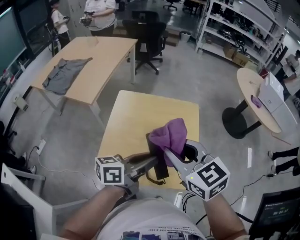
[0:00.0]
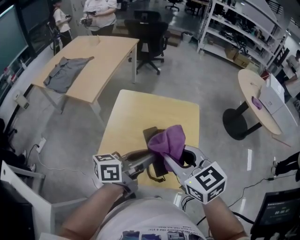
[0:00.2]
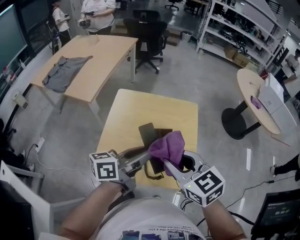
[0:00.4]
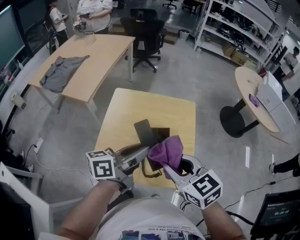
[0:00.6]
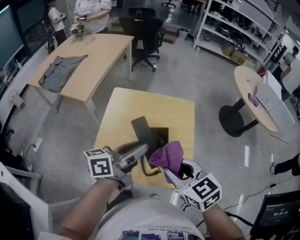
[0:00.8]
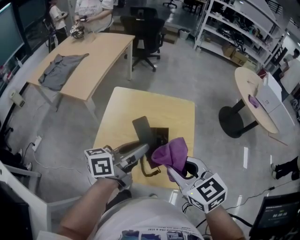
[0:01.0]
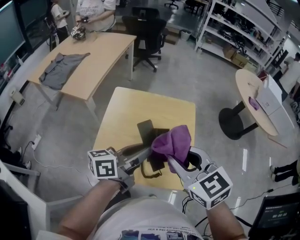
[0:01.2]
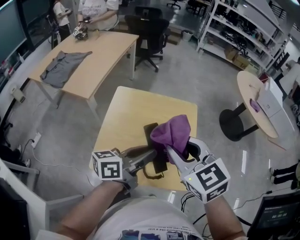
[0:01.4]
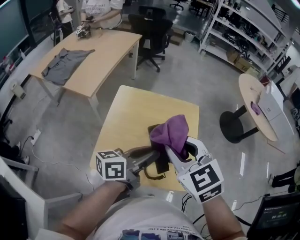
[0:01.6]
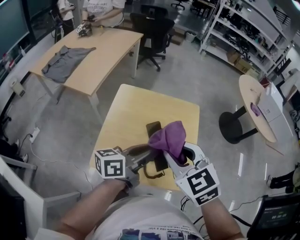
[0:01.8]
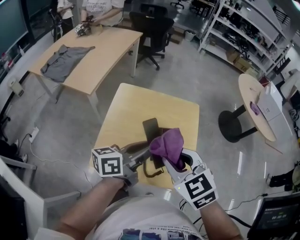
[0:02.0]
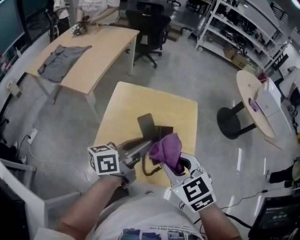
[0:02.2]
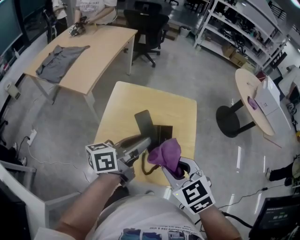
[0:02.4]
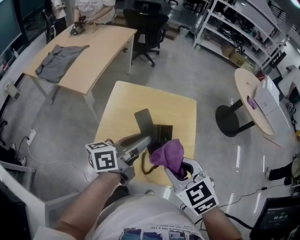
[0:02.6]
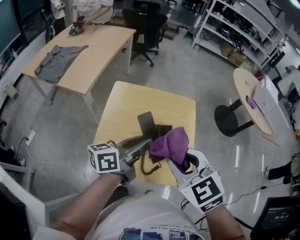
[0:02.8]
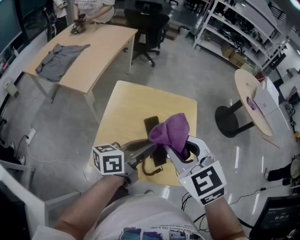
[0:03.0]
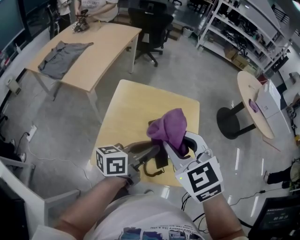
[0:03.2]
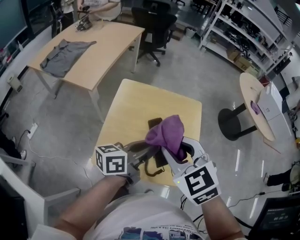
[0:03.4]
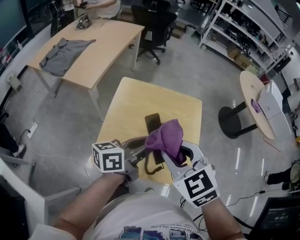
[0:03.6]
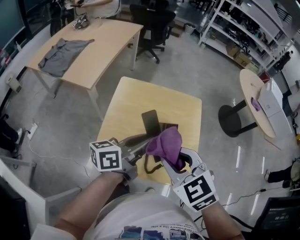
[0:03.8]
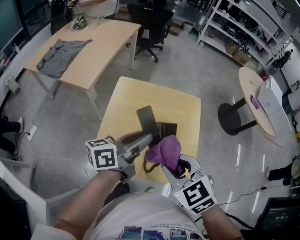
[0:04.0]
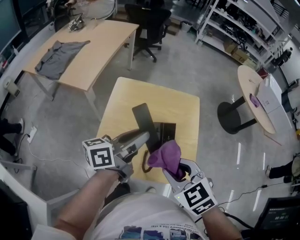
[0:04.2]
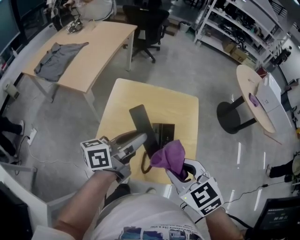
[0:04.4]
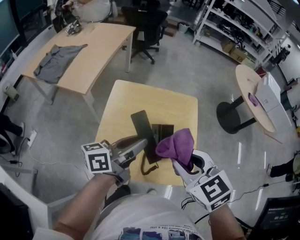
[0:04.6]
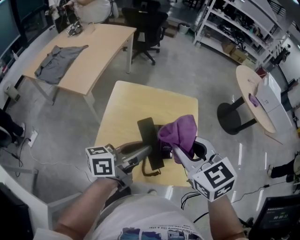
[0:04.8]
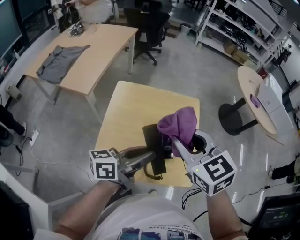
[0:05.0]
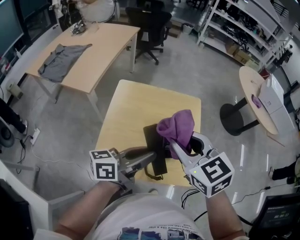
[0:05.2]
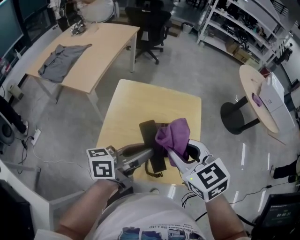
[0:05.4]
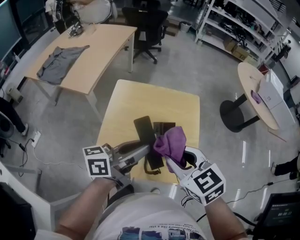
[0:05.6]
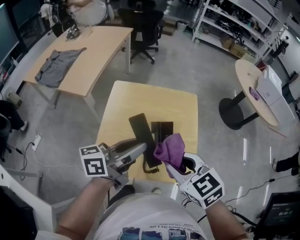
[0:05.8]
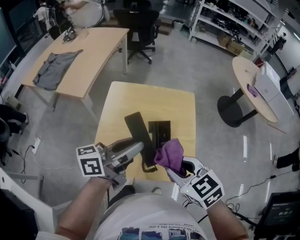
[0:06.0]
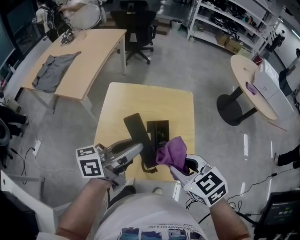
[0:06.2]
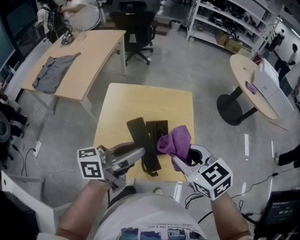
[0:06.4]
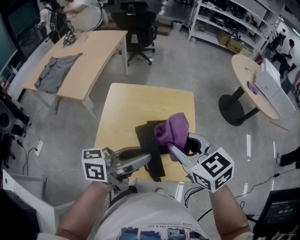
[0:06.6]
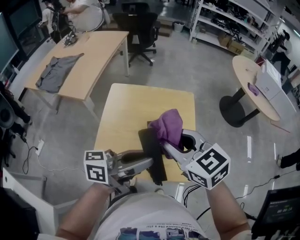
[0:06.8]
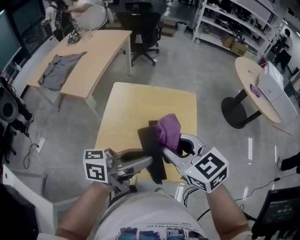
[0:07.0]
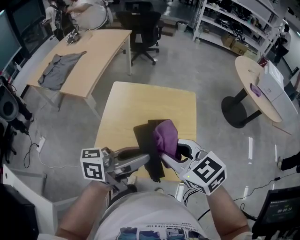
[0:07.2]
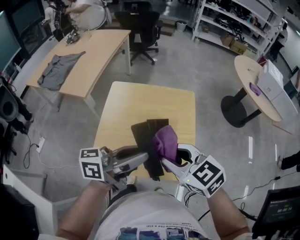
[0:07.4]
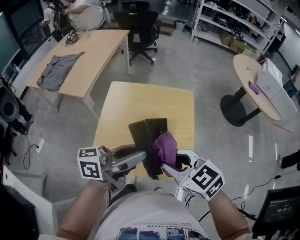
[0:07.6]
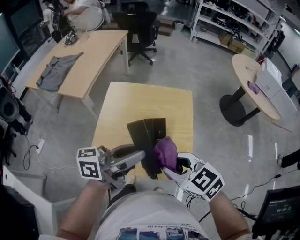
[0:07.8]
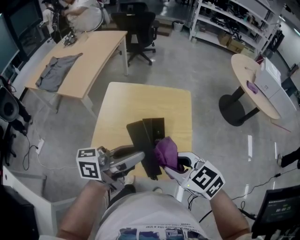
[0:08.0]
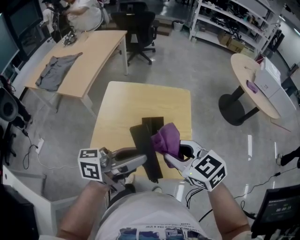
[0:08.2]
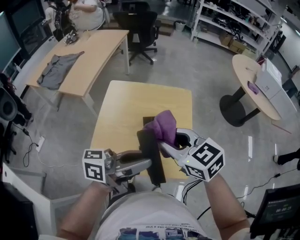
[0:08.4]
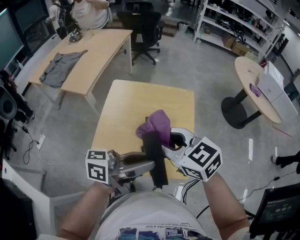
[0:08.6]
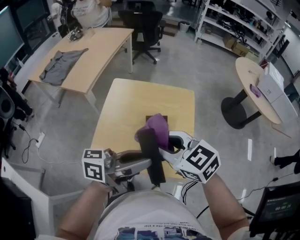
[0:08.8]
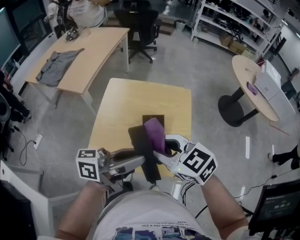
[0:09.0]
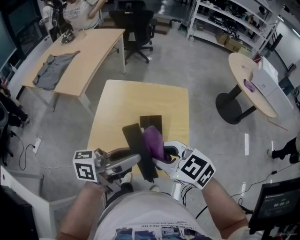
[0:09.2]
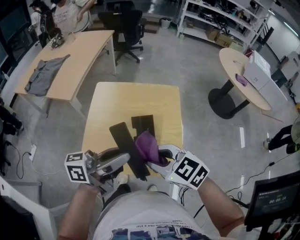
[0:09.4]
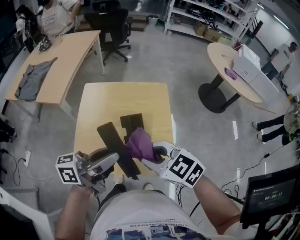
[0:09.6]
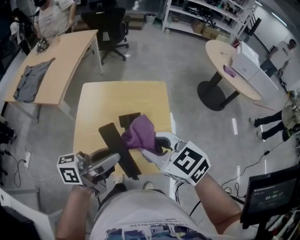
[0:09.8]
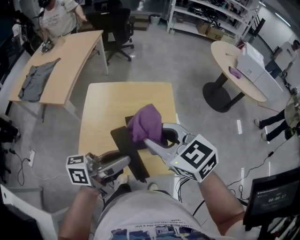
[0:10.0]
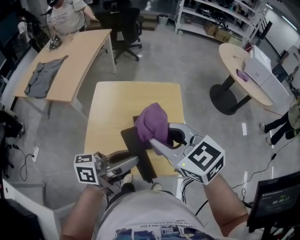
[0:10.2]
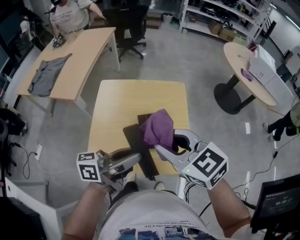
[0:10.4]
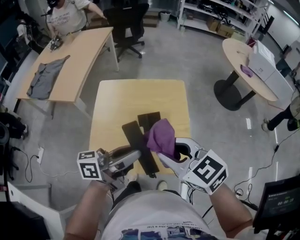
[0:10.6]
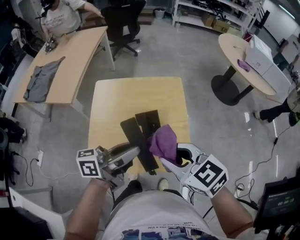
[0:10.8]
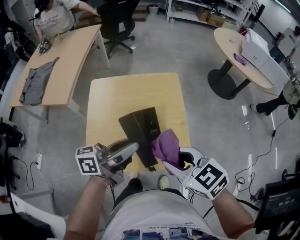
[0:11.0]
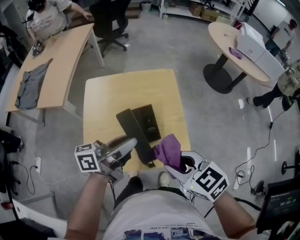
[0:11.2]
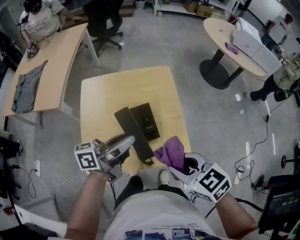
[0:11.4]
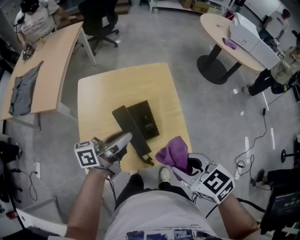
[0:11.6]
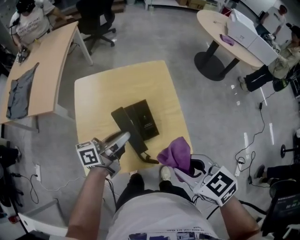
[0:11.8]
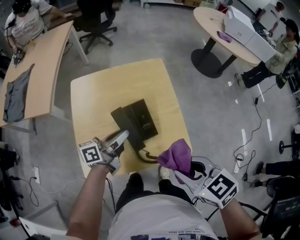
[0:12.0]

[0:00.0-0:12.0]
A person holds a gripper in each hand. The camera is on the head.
0:00.0 to 0:01.6: The right gripper moves roughly 5 cm downward and comes back.
0:01.6 to 0:03.0: The right gripper moves roughly 5 cm downward and comes back.
0:03.0 to 0:04.4: The left gripper shifts by roughly 5 cm, while the right gripper shifts about 10 cm downward and backward.
0:04.4 to 0:06.0: The right gripper moves approximately 5 cm upward and comes back.
0:06.0 to 0:07.6: The left gripper ends up about 5 cm from where it was.
0:09.0 to 0:10.4: The right gripper changes place by some 5 cm.
0:10.4 to 0:12.0: The right gripper travels backward, downward and to the right by some 15 cm, and changes its angle by approximately 30 degrees; the left gripper moves downward and forward, about 15 cm.

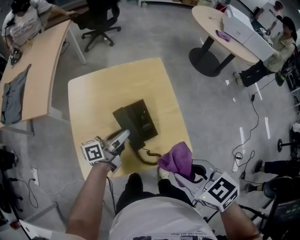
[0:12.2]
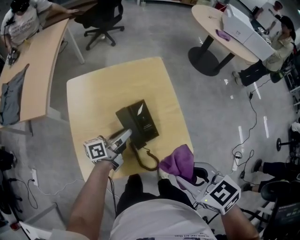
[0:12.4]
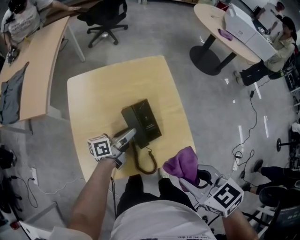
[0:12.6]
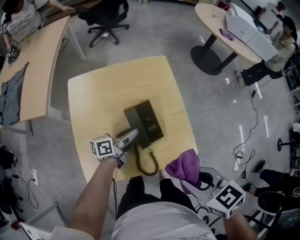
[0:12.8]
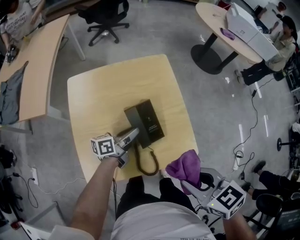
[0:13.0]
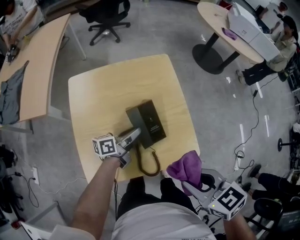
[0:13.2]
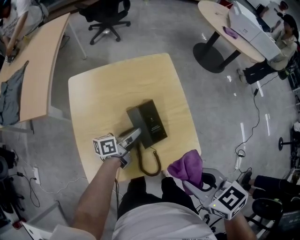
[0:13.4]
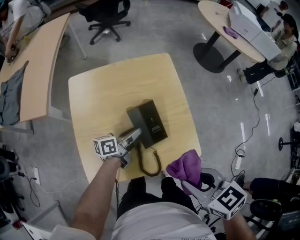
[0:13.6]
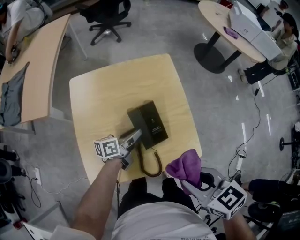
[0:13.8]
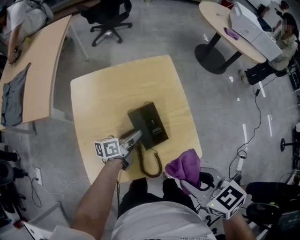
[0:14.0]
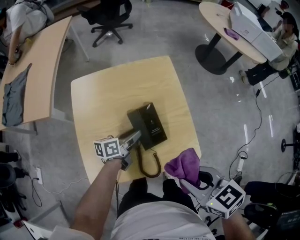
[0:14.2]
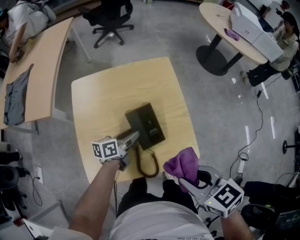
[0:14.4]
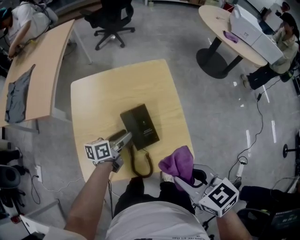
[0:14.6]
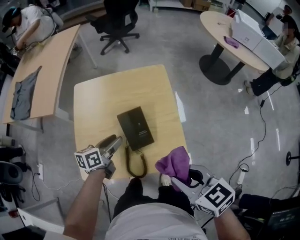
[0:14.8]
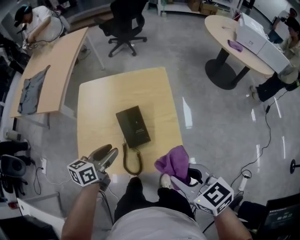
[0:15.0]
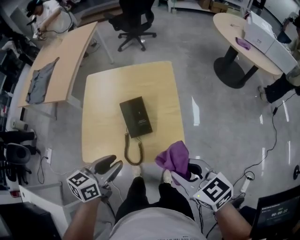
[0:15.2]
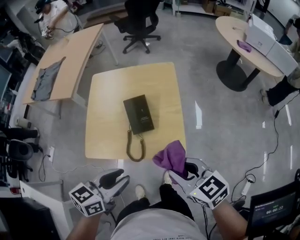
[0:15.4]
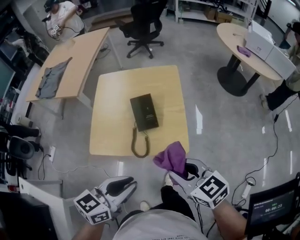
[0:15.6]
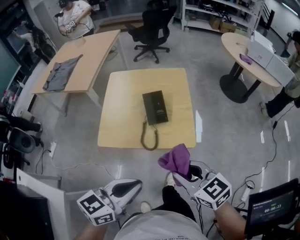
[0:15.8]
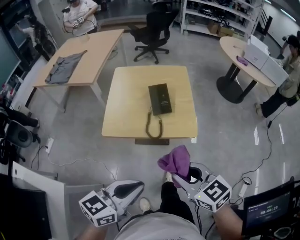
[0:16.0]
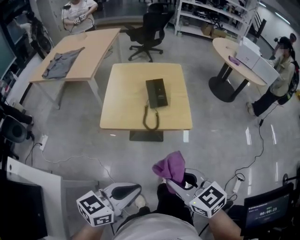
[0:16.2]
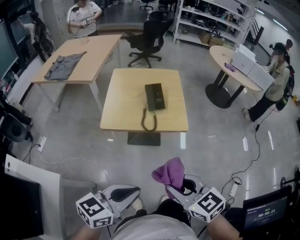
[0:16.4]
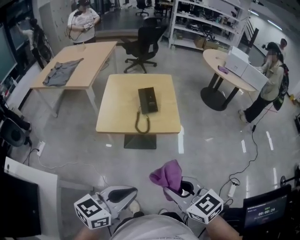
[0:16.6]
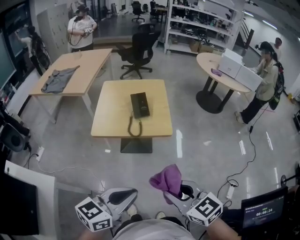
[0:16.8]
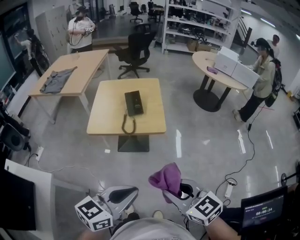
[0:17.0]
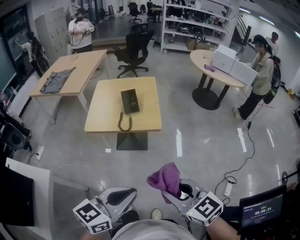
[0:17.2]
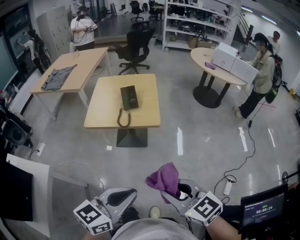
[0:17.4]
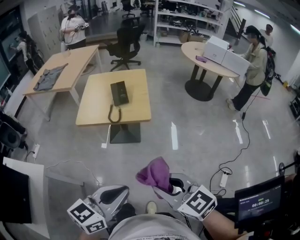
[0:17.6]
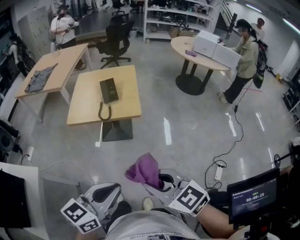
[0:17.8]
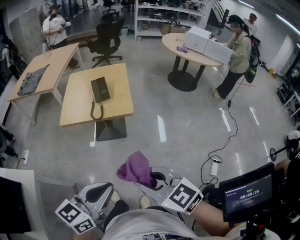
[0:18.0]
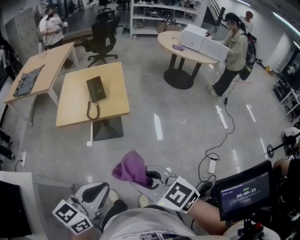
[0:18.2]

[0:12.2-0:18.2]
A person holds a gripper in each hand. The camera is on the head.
0:12.2 to 0:13.8: The left gripper is displaced downward by some 10 cm.
0:13.8 to 0:15.2: The right gripper is displaced to the right by roughly 10 cm, while the left gripper moves backward and upward, approximately 25 cm, and turns by approximately 30 degrees.
0:15.2 to 0:16.6: Both grippers travel together backward, some 30 cm. The left gripper swivels about 20 degrees, and closes its fingers.
0:16.6 to 0:18.2: The two grippers go approximately 15 cm to the right and backward.

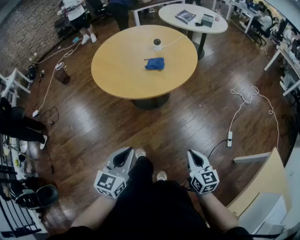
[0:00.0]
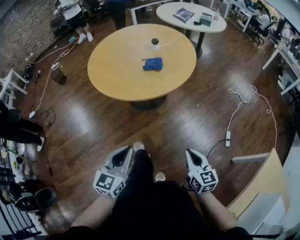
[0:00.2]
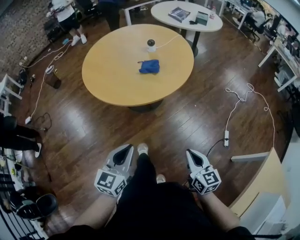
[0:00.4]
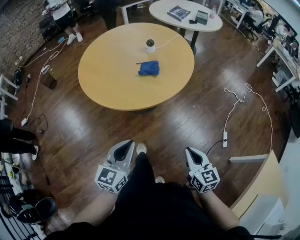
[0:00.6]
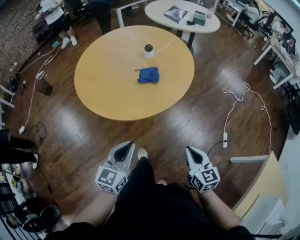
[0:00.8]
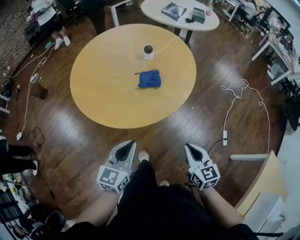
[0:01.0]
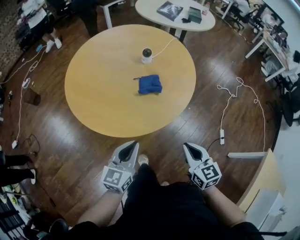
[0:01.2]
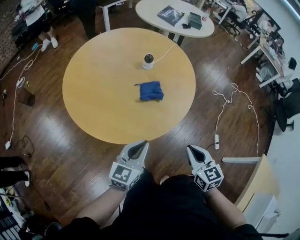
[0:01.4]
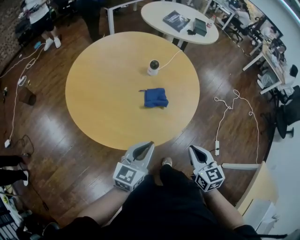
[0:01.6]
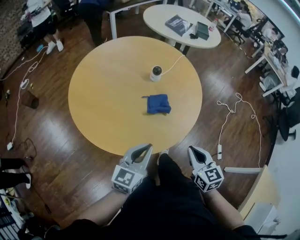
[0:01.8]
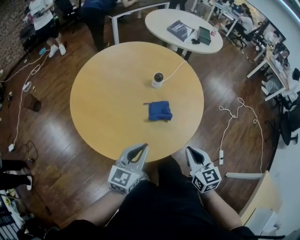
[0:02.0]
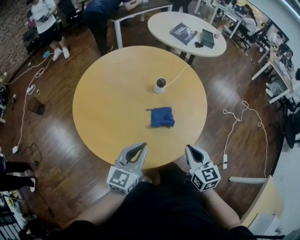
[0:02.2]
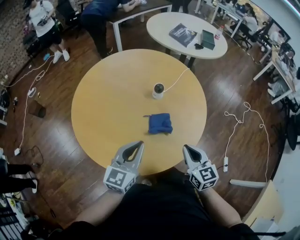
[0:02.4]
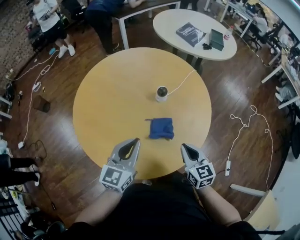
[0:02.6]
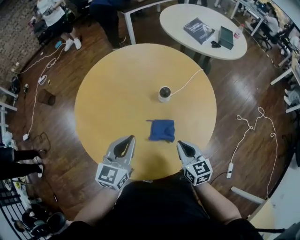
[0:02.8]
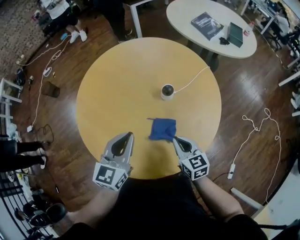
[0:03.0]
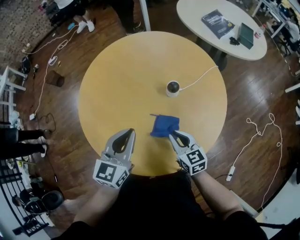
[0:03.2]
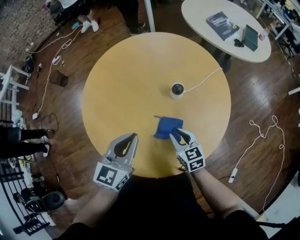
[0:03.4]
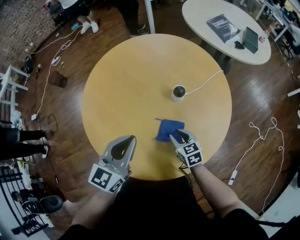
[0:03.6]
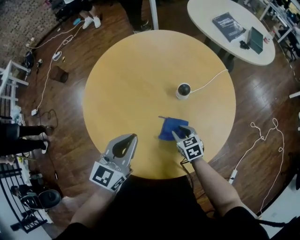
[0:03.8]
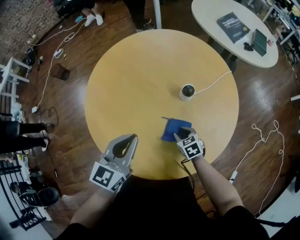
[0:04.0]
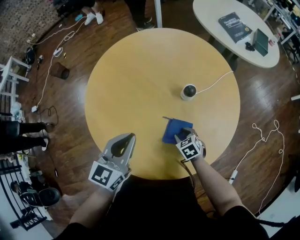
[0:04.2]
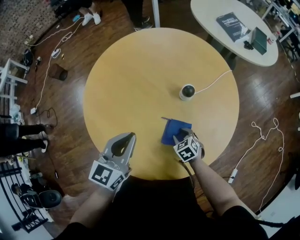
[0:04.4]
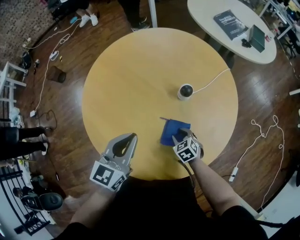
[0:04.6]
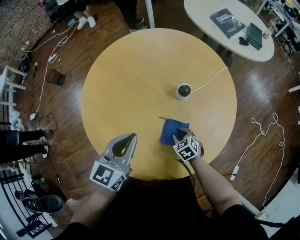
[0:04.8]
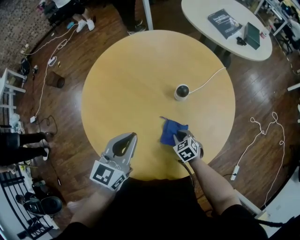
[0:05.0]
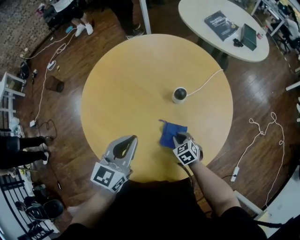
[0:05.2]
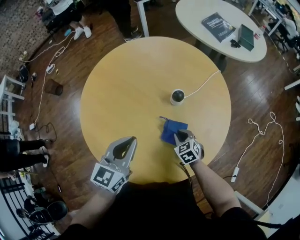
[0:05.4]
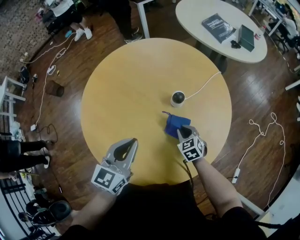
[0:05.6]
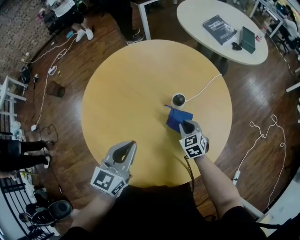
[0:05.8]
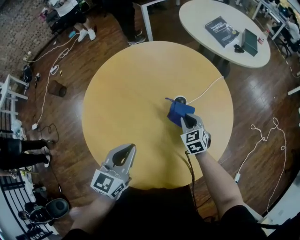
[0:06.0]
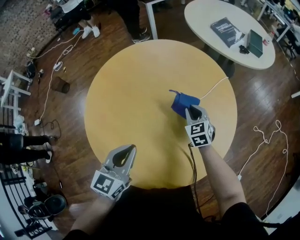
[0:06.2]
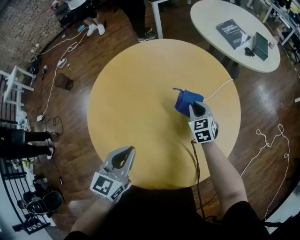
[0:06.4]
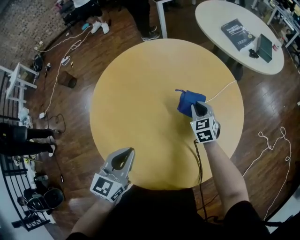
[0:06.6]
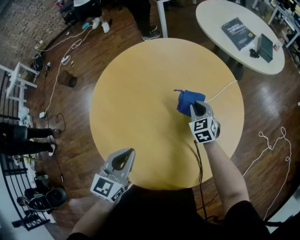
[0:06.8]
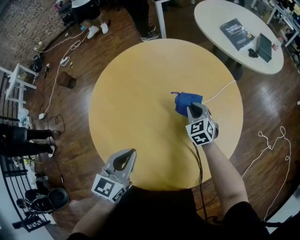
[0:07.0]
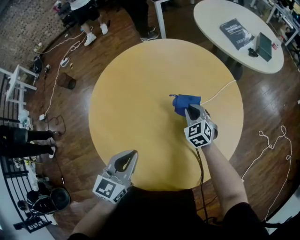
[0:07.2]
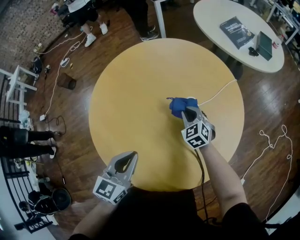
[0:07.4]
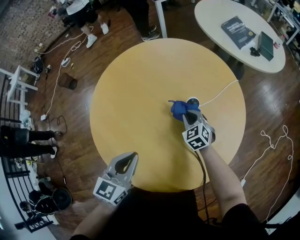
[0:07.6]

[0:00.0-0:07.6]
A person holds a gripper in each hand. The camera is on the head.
0:00.0 to 0:01.6: The left gripper heads forward, covering roughly 30 cm, and rotates approximately 20 degrees. The right gripper travels forward and to the left by approximately 30 cm.
0:01.6 to 0:03.0: The left gripper changes place by about 20 cm, and rotates about 30 degrees. Meanwhile the right gripper moves roughly 25 cm, and changes its angle by about 20 degrees.
0:03.0 to 0:04.6: The right gripper goes about 15 cm downward, angles its fingers downward, by some 30 degrees, and opens up.
0:04.6 to 0:06.0: The right gripper moves forward and upward, some 15 cm, swivels about 20 degrees, and closes up.
0:06.0 to 0:07.6: The right gripper changes place by about 5 cm.
